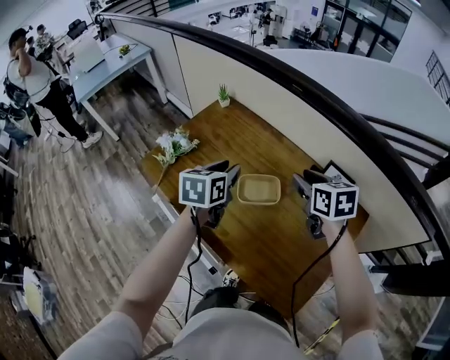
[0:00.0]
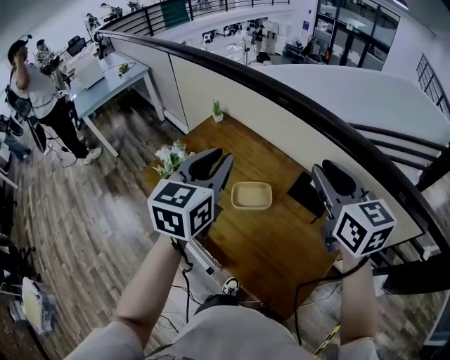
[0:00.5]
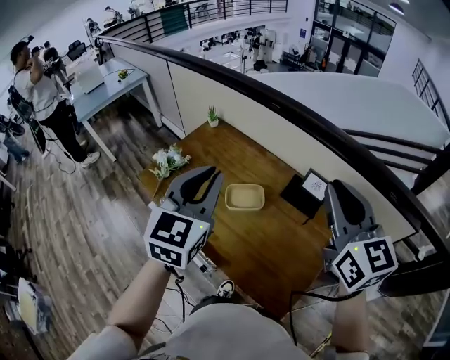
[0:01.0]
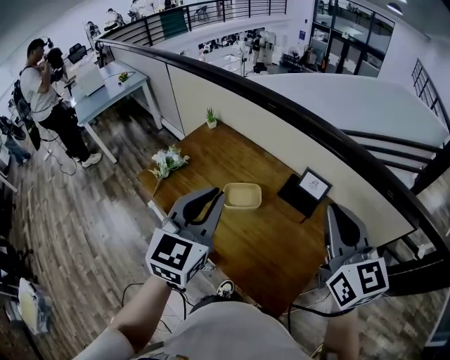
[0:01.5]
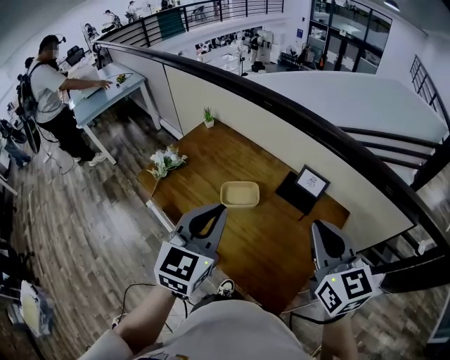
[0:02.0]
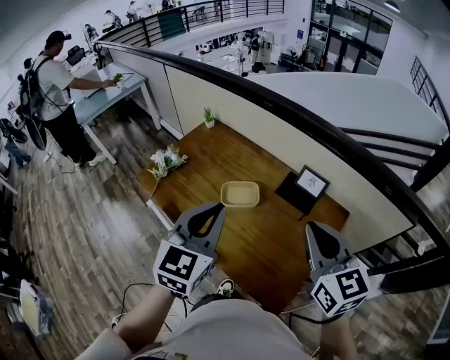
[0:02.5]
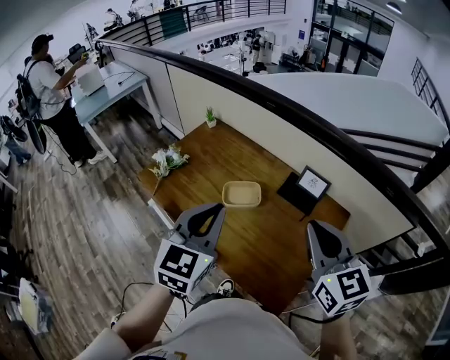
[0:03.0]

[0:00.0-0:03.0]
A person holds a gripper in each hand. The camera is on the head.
0.0 to 1.5 s: Both grippers move upward and backward, roughly 30 cm. The left gripper swivels approximately 40 degrees, and closes its fingers. Meanwhile the right gripper points its fingers roughly 30 degrees further upward, and closes.
1.5 to 3.0 s: The right gripper moves roughly 5 cm.

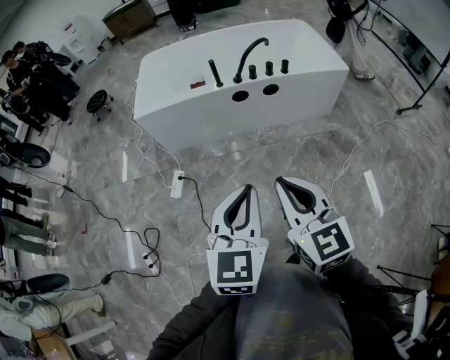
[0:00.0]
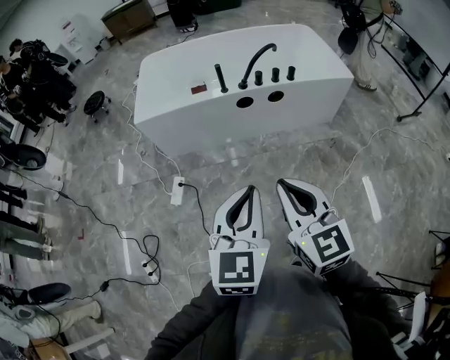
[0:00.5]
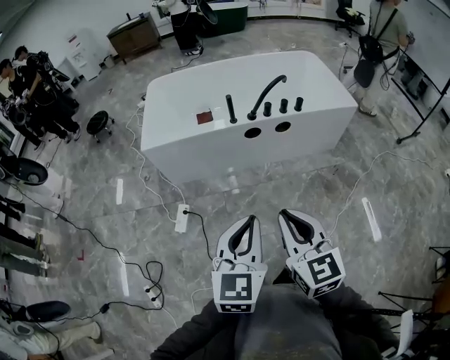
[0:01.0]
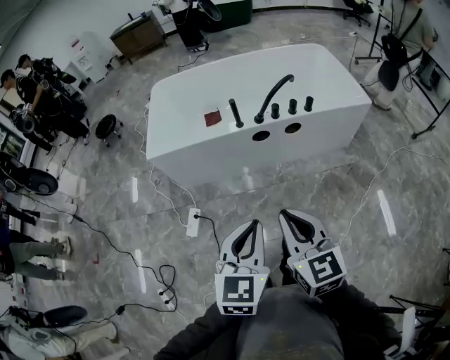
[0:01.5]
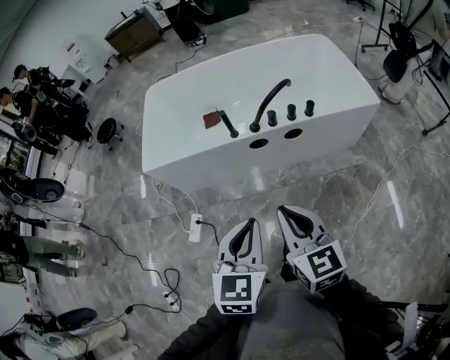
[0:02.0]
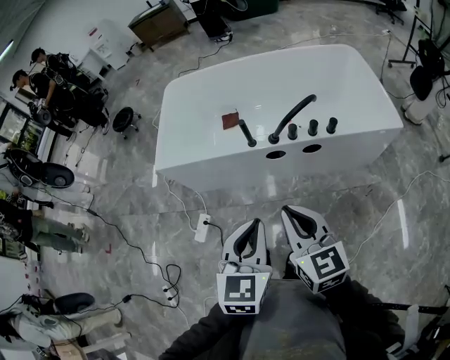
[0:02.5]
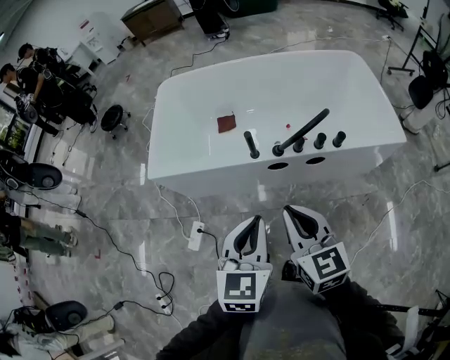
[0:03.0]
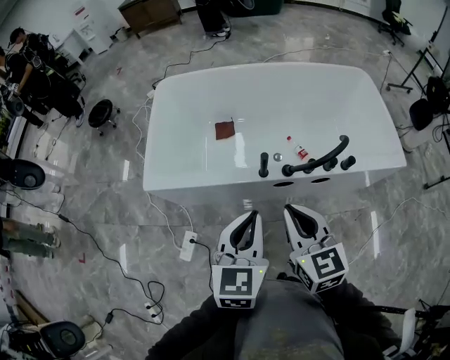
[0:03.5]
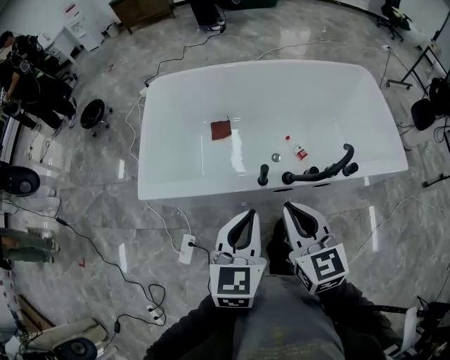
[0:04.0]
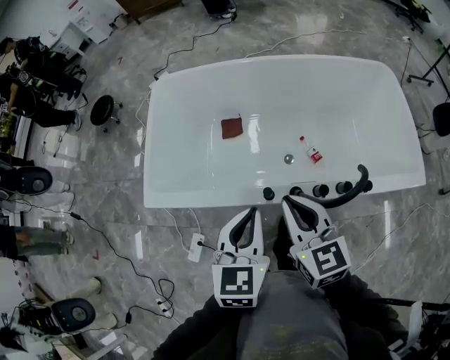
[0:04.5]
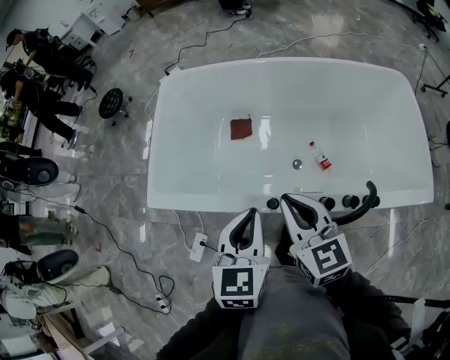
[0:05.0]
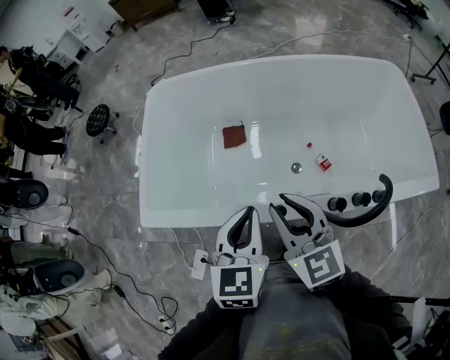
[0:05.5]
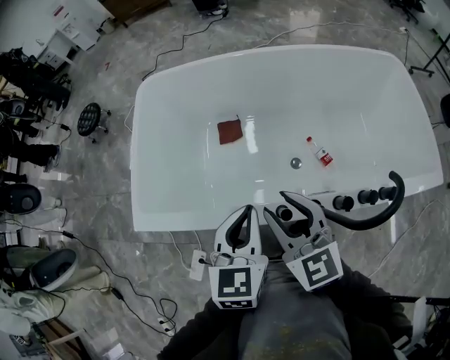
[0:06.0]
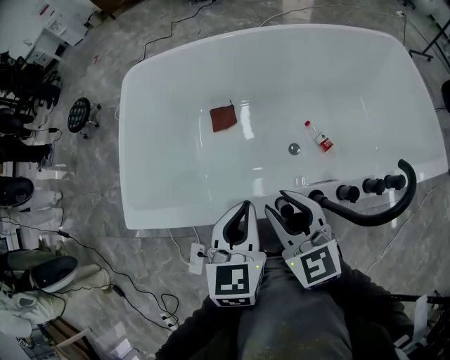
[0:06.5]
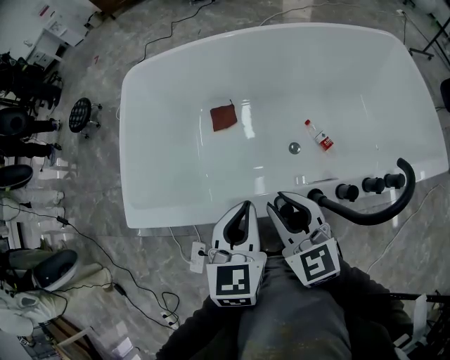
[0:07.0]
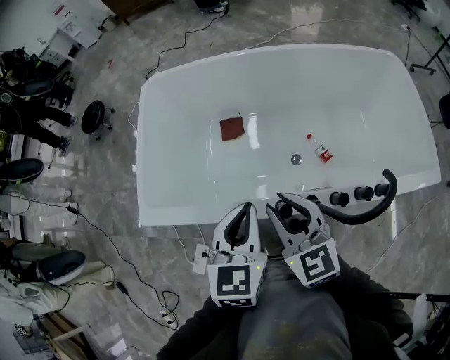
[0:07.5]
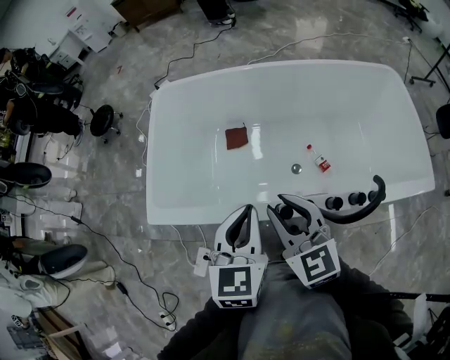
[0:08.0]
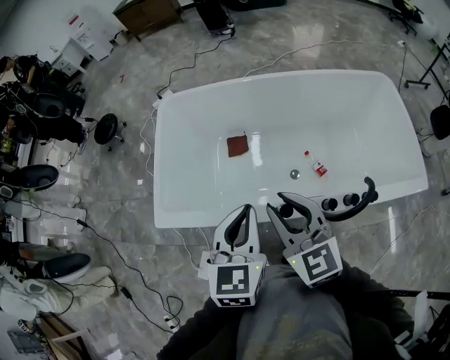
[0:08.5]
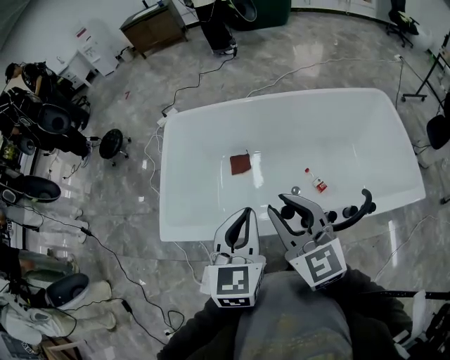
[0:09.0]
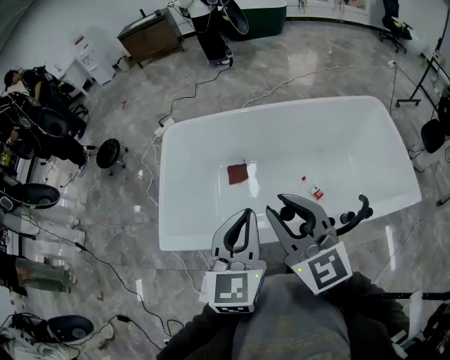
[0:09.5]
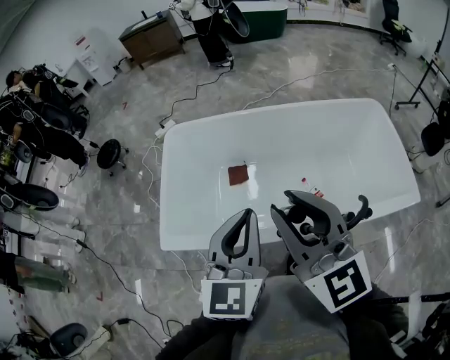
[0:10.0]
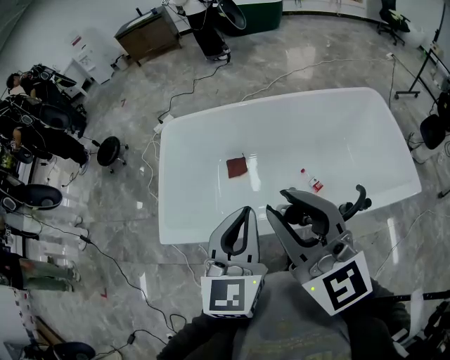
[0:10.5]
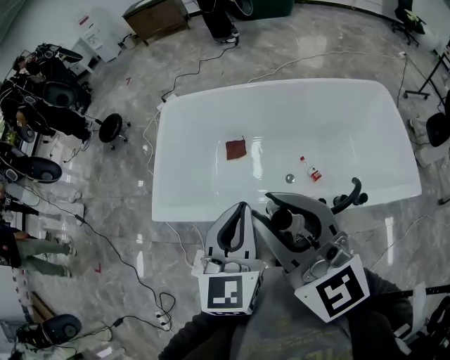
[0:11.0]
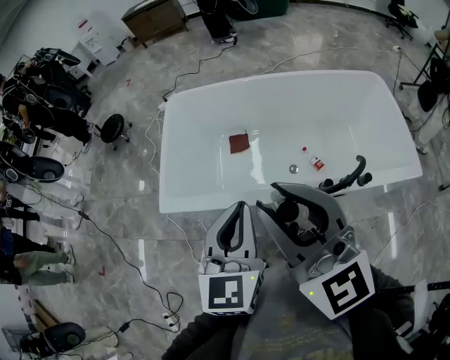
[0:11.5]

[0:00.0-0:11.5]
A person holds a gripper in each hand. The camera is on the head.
0.0 to 2.0 s: The two grippers go some 30 cm forward.
2.0 to 4.0 s: The grippers both shift forward by roughly 35 cm.
4.0 to 6.0 s: Both grippers travel together forward and downward, approximately 20 cm. The right gripper opens up.
6.0 to 7.5 s: The right gripper reaches about 5 cm downward, then returns.
7.5 to 9.5 s: The grippers both shift upward by some 20 cm.
9.5 to 11.5 s: The left gripper travels backward by some 10 cm. The right gripper moves backward and upward, some 15 cm.

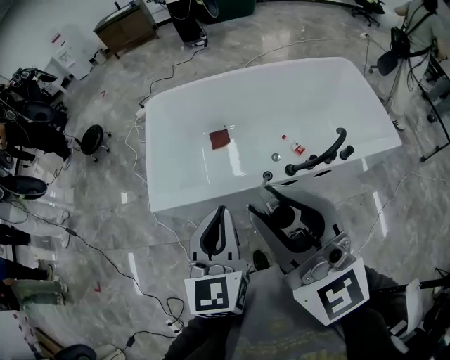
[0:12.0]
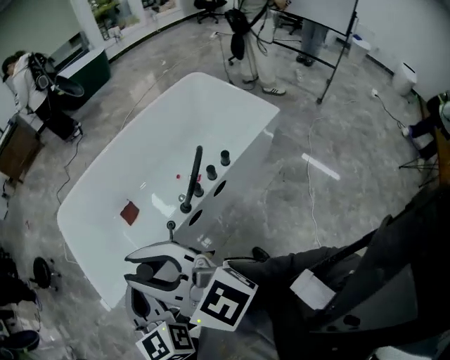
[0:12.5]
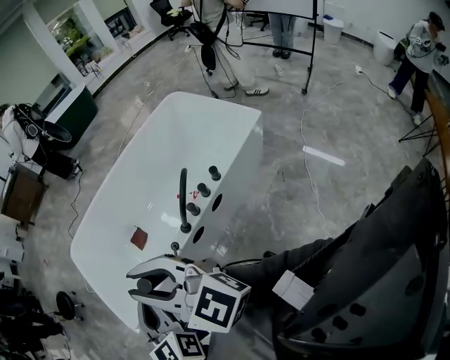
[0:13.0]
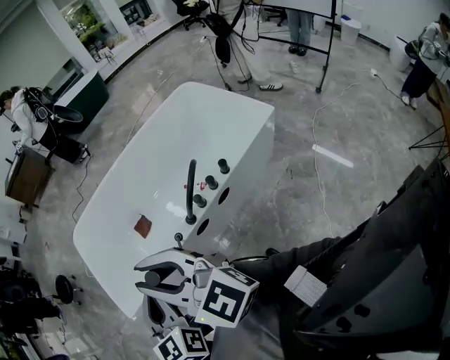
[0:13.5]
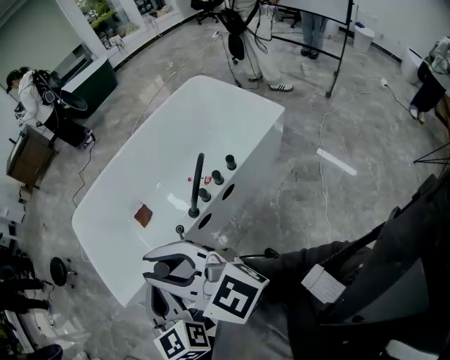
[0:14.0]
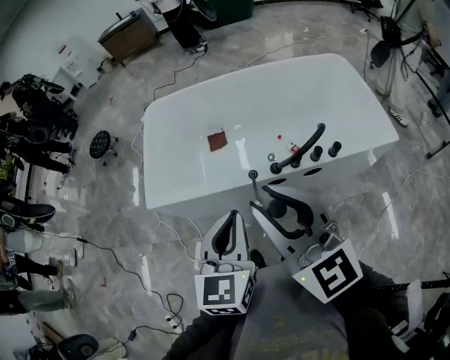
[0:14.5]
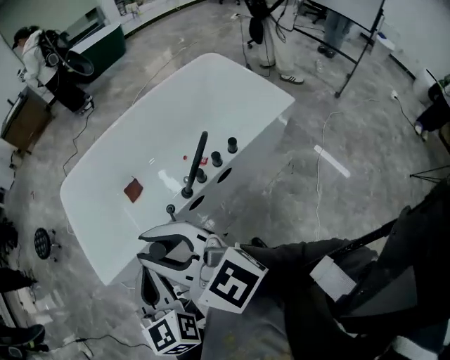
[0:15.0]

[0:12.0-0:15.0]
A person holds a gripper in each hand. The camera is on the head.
12.0 to 13.5 s: Both grippers move to the right and backward, approximately 15 cm.
13.5 to 15.0 s: The left gripper shifts by approximately 5 cm, while the right gripper travels downward by about 5 cm.

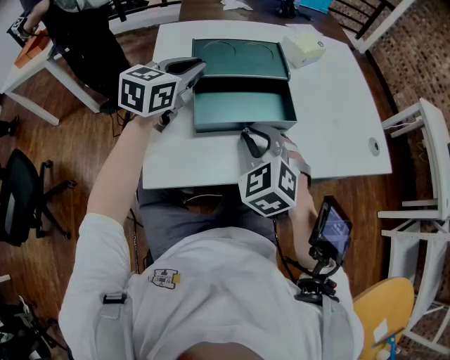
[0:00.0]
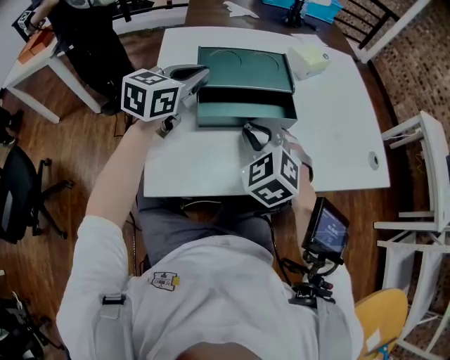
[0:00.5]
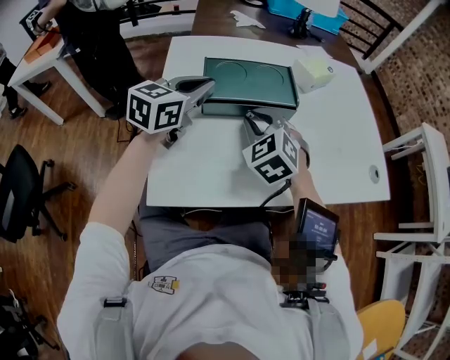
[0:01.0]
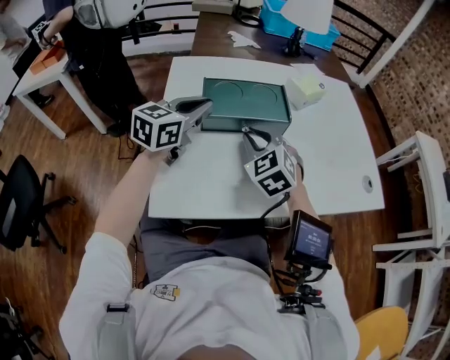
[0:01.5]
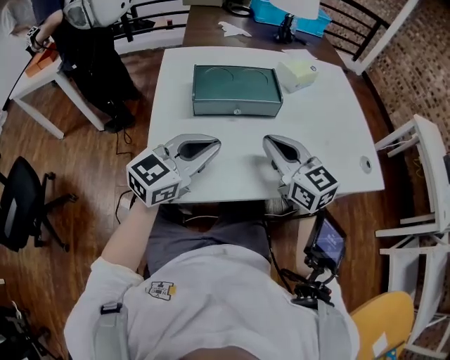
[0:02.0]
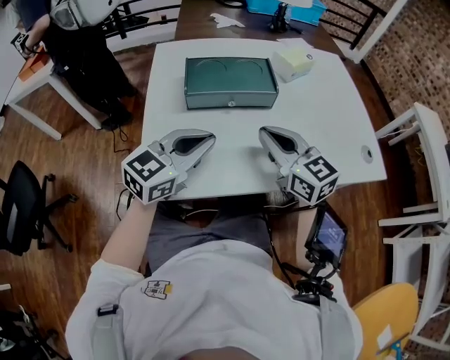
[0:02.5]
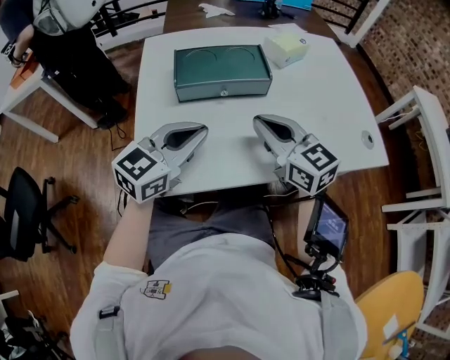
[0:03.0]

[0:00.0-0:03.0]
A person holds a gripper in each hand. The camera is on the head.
0.0 to 1.5 s: The right gripper is displaced forward by roughly 10 cm.
1.5 to 3.0 s: The right gripper shifts approximately 10 cm backward and to the right, and turns by about 40 degrees; the left gripper moves backward and to the right, about 15 cm.

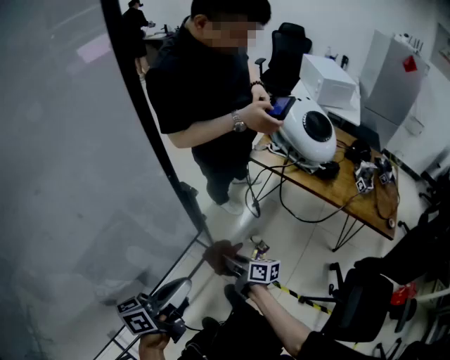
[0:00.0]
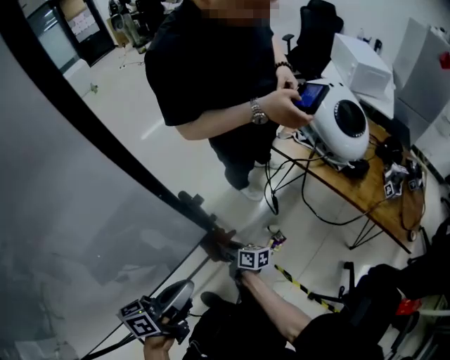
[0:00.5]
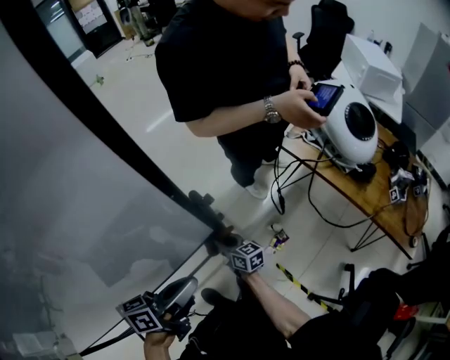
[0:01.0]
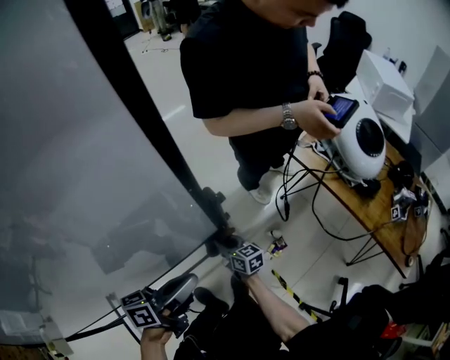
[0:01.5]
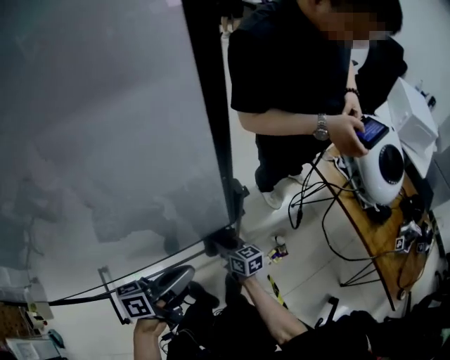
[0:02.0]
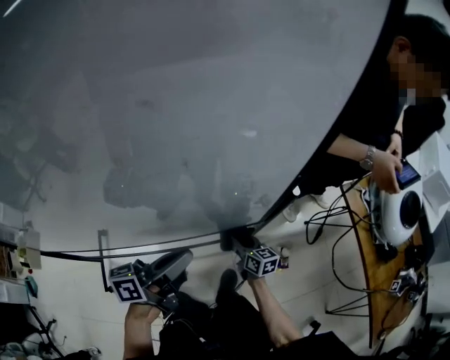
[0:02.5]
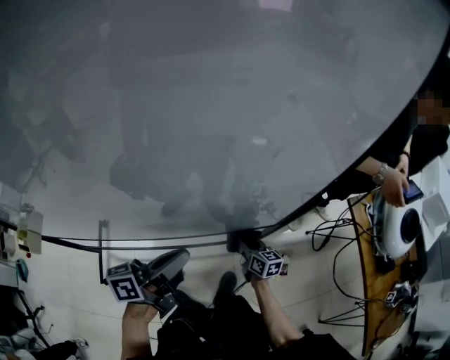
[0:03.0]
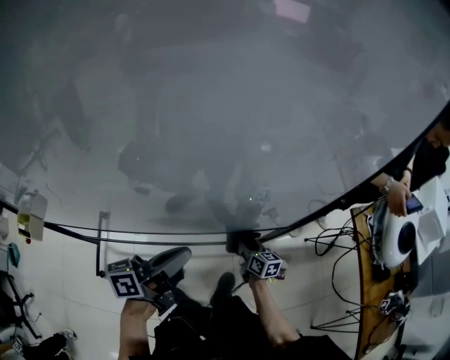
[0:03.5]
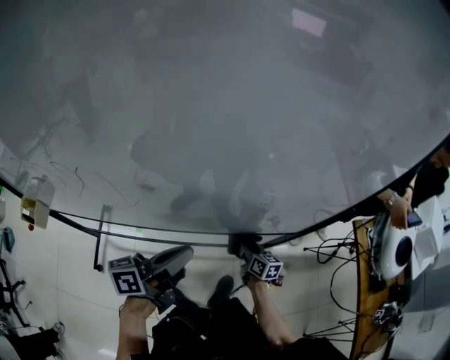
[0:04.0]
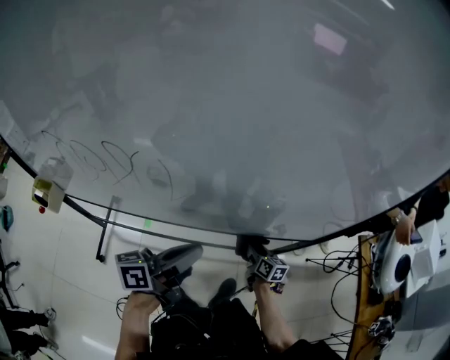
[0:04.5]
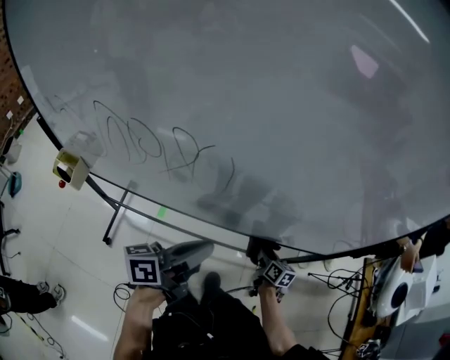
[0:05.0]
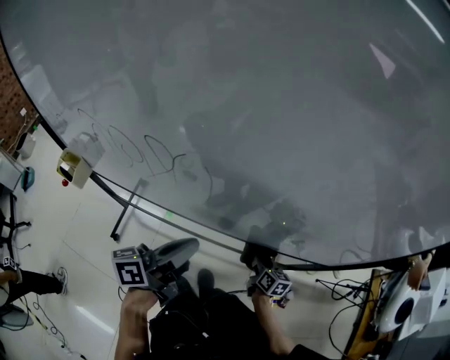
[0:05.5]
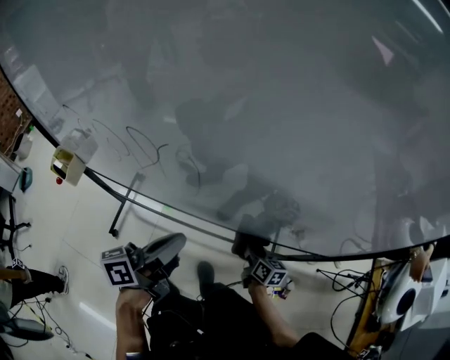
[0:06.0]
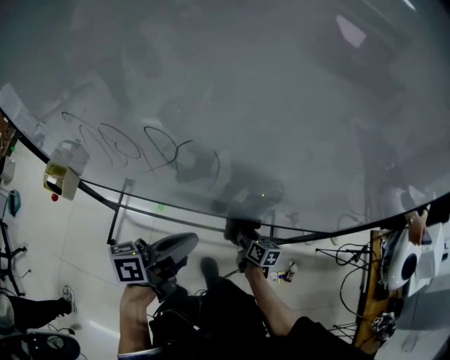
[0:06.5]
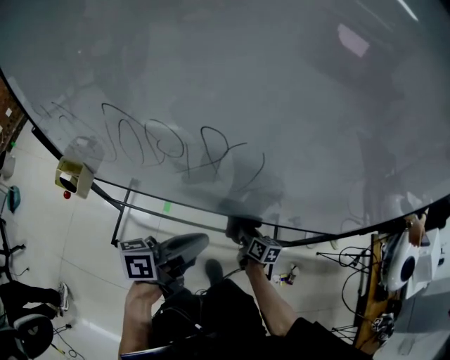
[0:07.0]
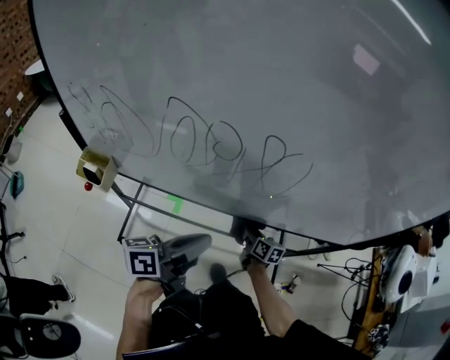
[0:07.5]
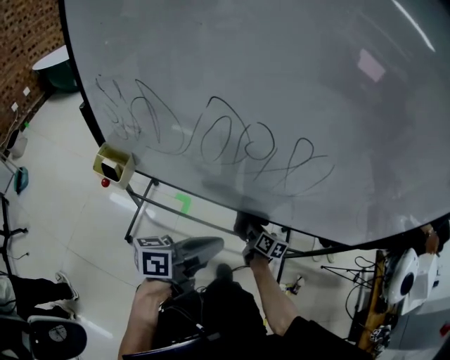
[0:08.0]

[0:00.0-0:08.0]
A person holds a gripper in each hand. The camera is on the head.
0.0 to 2.0 s: The right gripper heads to the left, forward and downward, covering approximately 15 cm, and turns by approximately 40 degrees. The left gripper moves roughly 5 cm.
2.0 to 4.0 s: The right gripper goes about 15 cm to the left. Meanwhile the left gripper goes approximately 30 cm to the left, and swivels approximately 30 degrees.
4.0 to 6.0 s: The grippers both shift to the left by roughly 15 cm. The left gripper rotates roughly 20 degrees.
6.0 to 8.0 s: The right gripper travels to the left by approximately 25 cm. Meanwhile the left gripper travels to the left and backward by about 15 cm.
